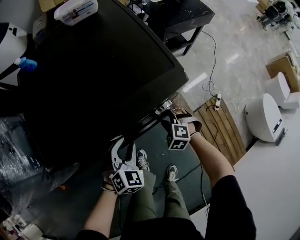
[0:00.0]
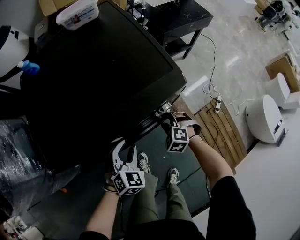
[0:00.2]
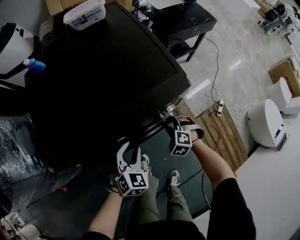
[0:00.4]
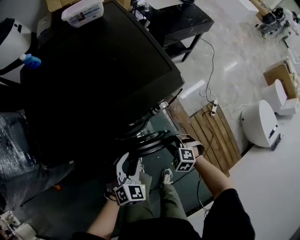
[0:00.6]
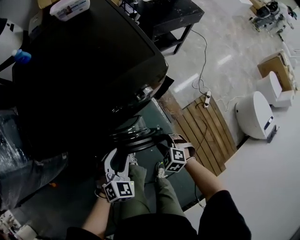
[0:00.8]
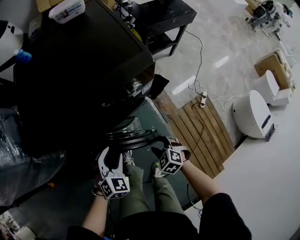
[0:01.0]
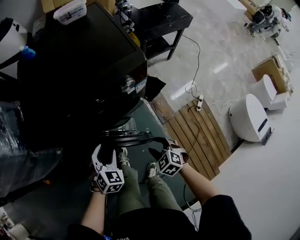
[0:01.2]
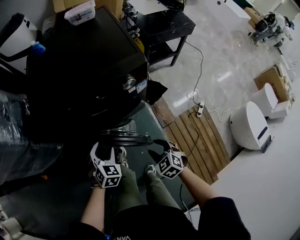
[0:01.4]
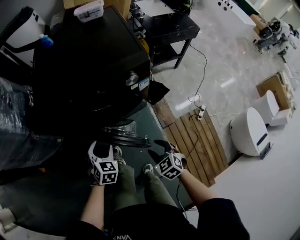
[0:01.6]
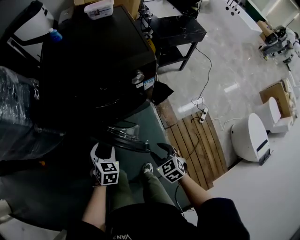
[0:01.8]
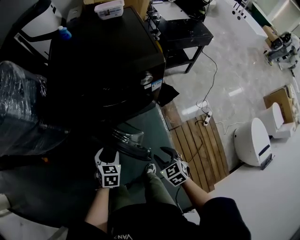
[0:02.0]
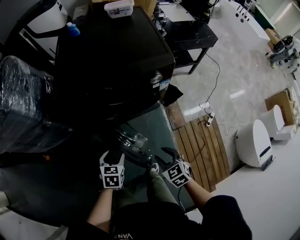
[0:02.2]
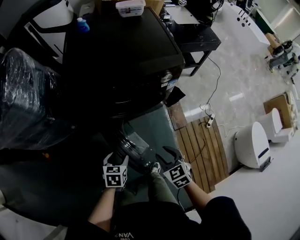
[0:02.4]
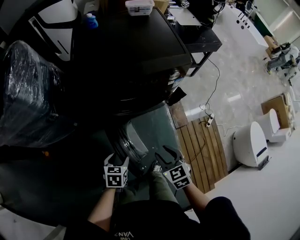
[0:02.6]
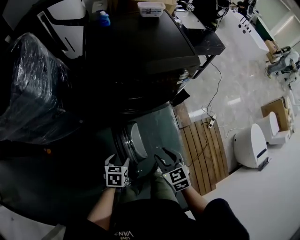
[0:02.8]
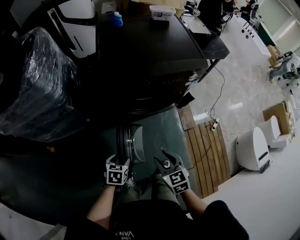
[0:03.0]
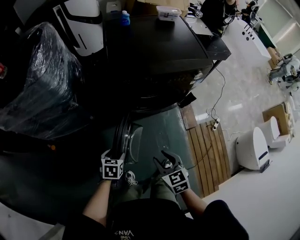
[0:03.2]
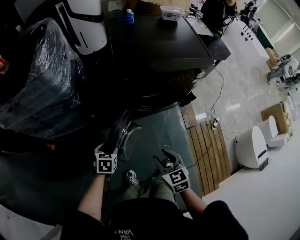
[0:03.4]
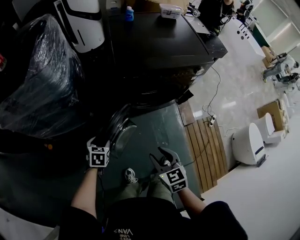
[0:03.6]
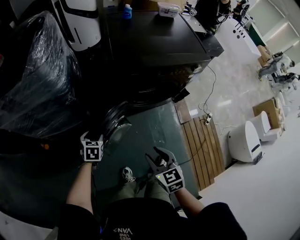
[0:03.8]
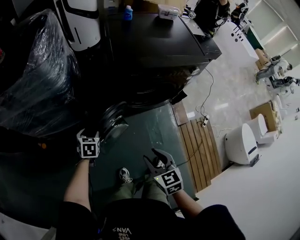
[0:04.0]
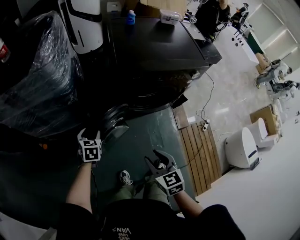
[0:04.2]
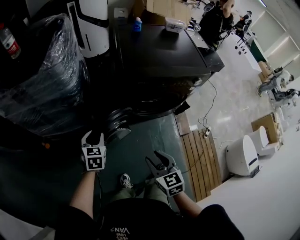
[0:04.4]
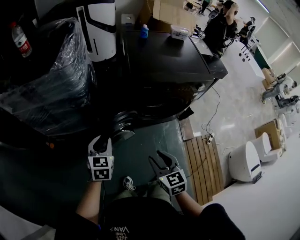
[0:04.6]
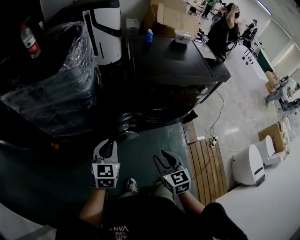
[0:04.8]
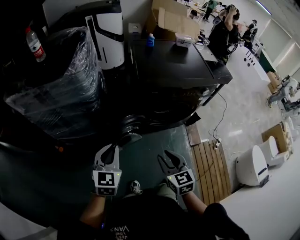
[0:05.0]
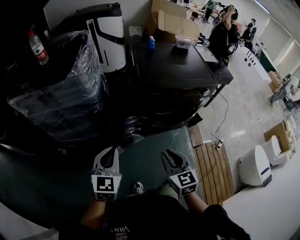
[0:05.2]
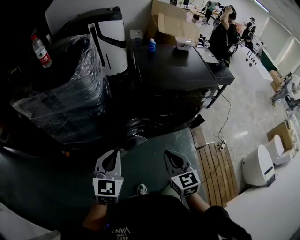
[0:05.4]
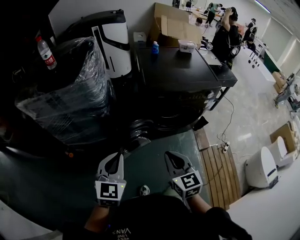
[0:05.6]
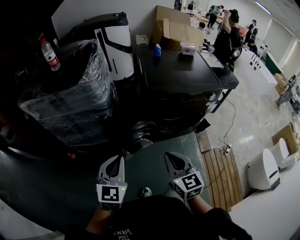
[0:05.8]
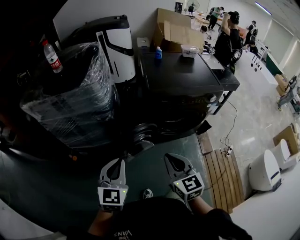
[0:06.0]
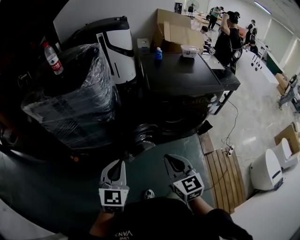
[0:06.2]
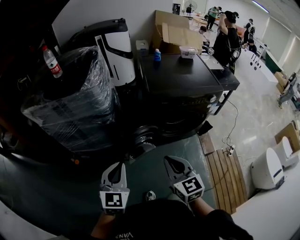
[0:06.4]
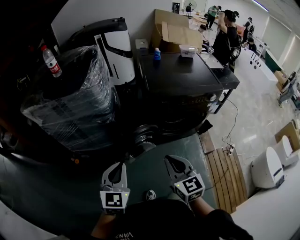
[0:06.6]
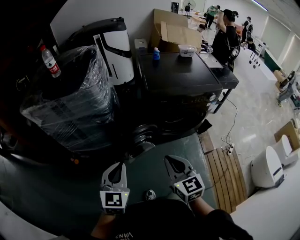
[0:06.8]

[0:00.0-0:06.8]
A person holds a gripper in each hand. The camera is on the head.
0:00.0 to 0:01.4: The right gripper travels backward by about 25 cm, and swivels some 30 degrees. The left gripper goes approximately 15 cm backward.
0:01.4 to 0:02.8: The left gripper shifts roughly 25 cm to the left and backward, and changes its angle by about 40 degrees, while the right gripper goes about 25 cm to the left and upward.
0:02.8 to 0:04.0: The grippers both shift to the left by roughly 20 cm.
0:04.0 to 0:05.4: The right gripper is displaced upward by some 15 cm, and closes its fingers, while the left gripper goes about 35 cm upward and backward, angles its fingers upward, by about 30 degrees, and closes up.
0:05.4 to 0:06.8: There are only small adjustments of the grippers.

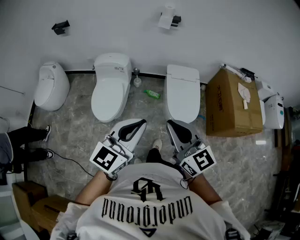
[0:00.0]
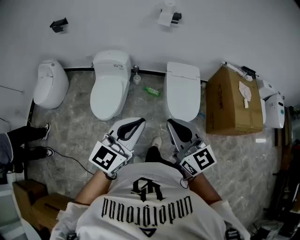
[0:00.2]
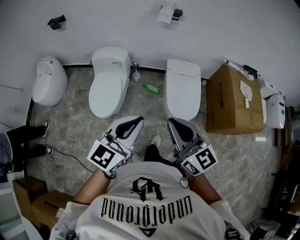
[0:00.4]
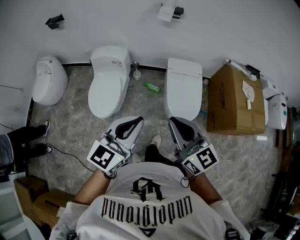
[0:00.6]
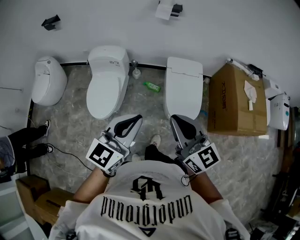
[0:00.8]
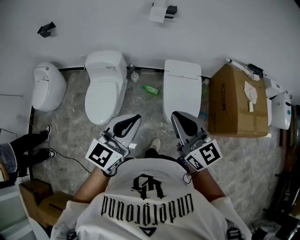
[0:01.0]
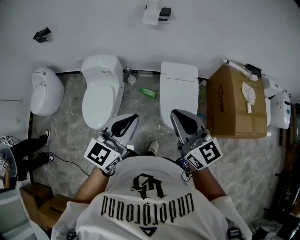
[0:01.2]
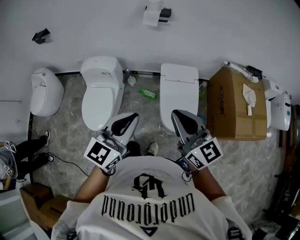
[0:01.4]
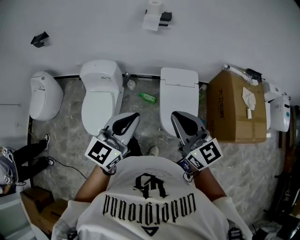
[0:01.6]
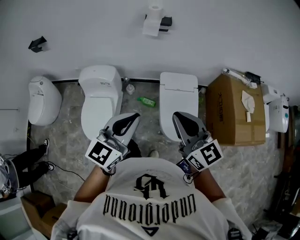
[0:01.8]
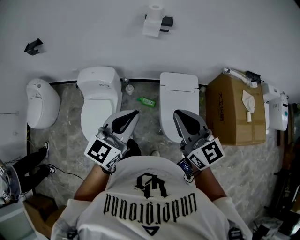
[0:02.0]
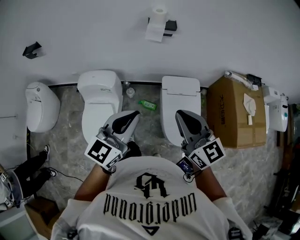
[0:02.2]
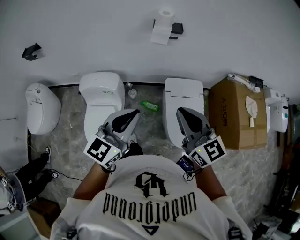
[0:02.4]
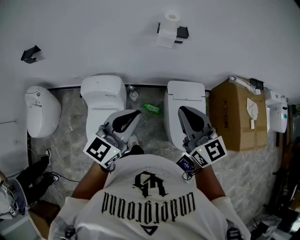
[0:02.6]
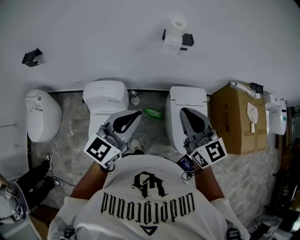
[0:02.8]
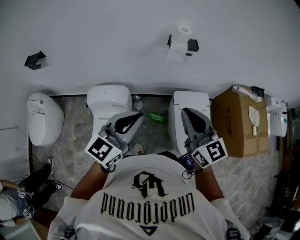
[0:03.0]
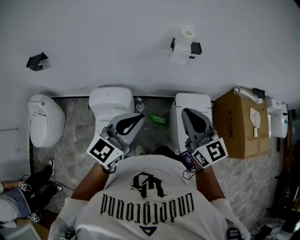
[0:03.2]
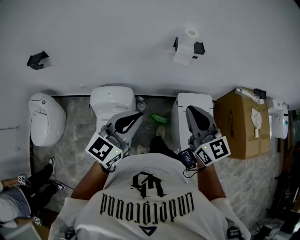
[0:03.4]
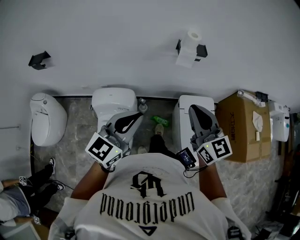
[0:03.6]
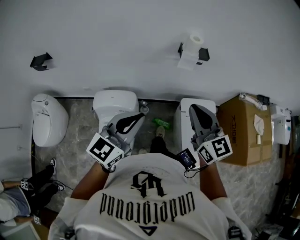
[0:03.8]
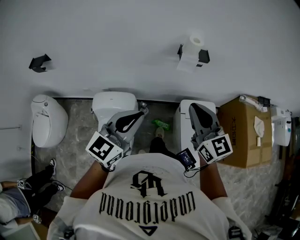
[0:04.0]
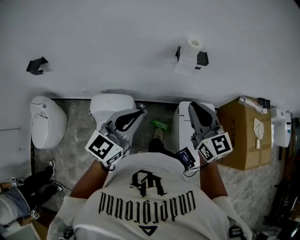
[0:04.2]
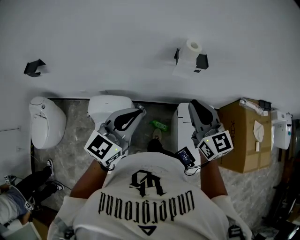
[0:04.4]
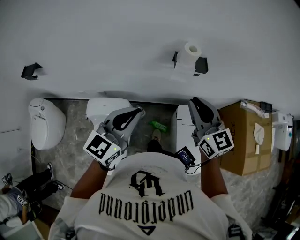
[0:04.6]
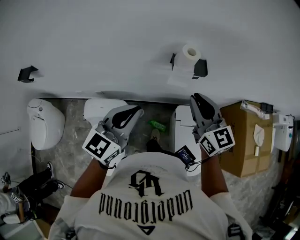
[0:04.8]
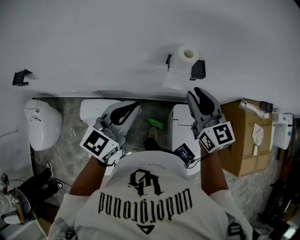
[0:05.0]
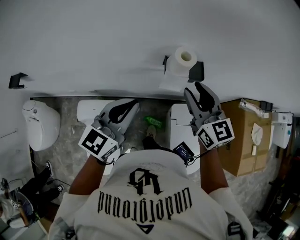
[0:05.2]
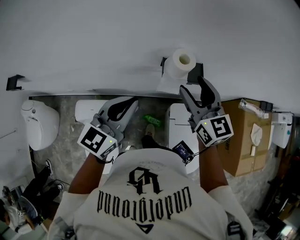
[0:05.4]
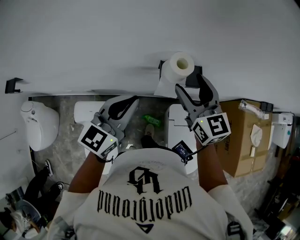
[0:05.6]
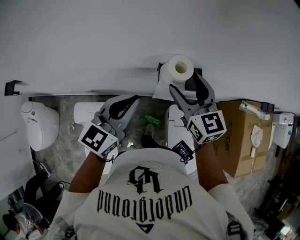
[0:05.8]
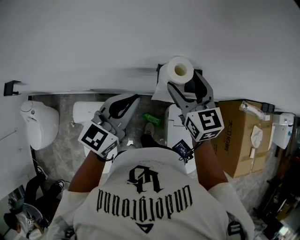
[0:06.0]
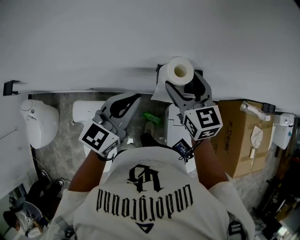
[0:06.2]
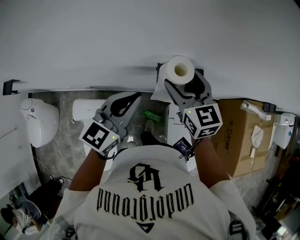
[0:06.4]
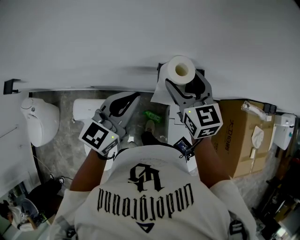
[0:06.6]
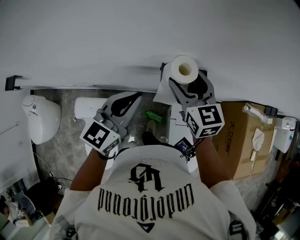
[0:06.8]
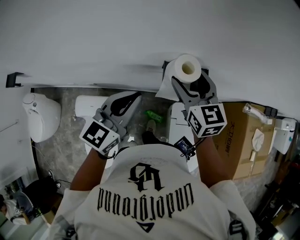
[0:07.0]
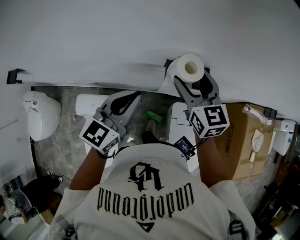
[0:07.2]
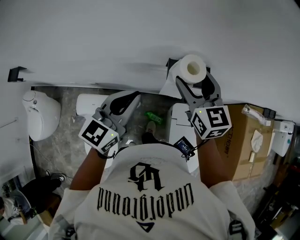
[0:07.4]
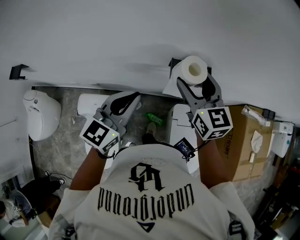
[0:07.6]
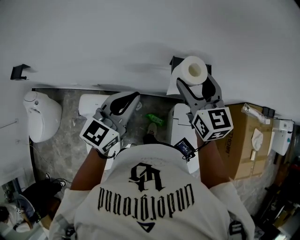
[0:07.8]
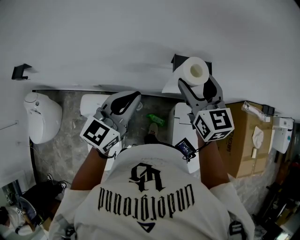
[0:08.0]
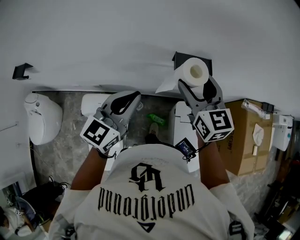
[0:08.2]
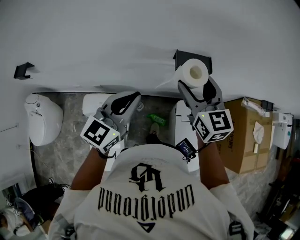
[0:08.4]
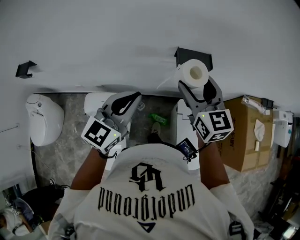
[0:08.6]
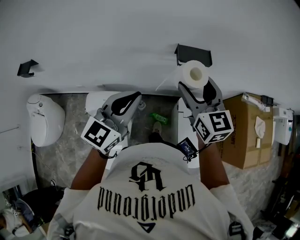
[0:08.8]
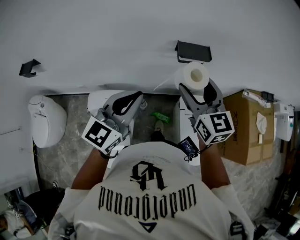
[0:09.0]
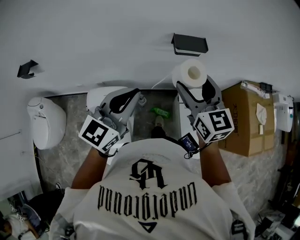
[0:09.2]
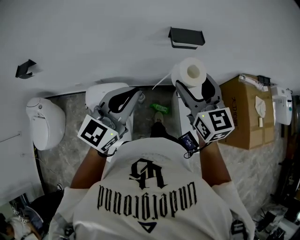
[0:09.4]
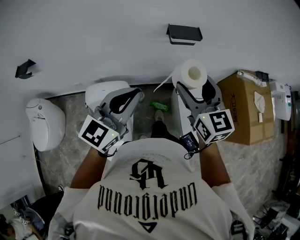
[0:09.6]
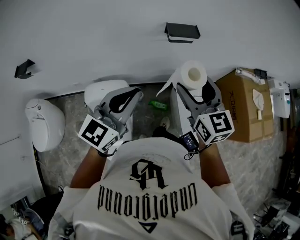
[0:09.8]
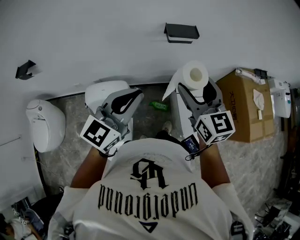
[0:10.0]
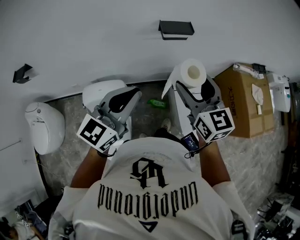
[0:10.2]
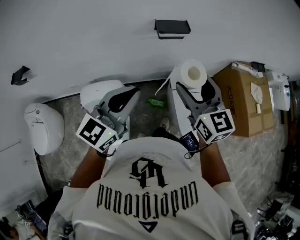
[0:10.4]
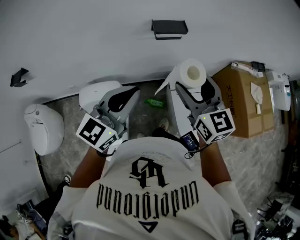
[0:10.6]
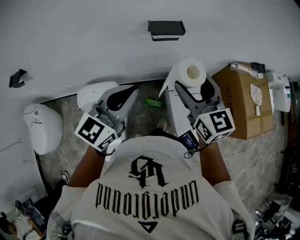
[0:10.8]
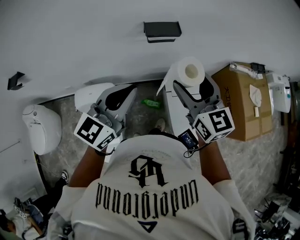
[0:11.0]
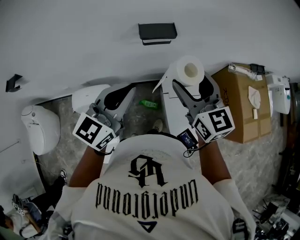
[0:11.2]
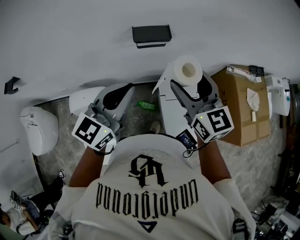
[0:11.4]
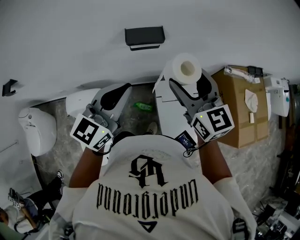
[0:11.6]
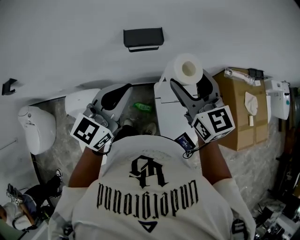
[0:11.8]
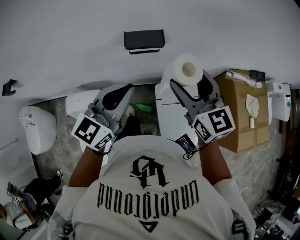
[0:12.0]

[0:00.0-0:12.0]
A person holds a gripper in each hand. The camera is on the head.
0:00.0 to 0:01.6: The left gripper shifts roughly 25 cm forward. The right gripper shifts some 30 cm forward and to the right.
0:01.6 to 0:03.0: Both grippers travel together forward and to the left, some 30 cm.
0:03.0 to 0:04.4: The grippers both shift forward by approximately 15 cm.
0:04.4 to 0:06.0: The grippers both shift forward by roughly 25 cm. The right gripper opens.
0:06.0 to 0:07.6: The left gripper changes place by approximately 5 cm. Meanwhile the right gripper moves about 5 cm.
0:07.6 to 0:09.0: Both grippers move backward, roughly 15 cm.
0:09.0 to 0:10.4: The two grippers go approximately 10 cm backward and to the right.
0:10.4 to 0:12.0: Both grippers travel together forward and to the right, about 20 cm.

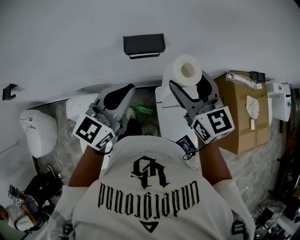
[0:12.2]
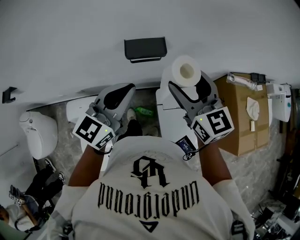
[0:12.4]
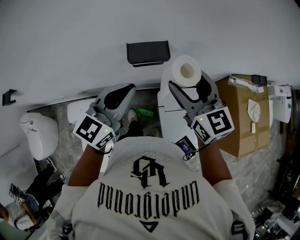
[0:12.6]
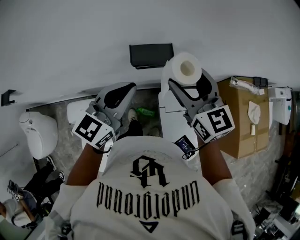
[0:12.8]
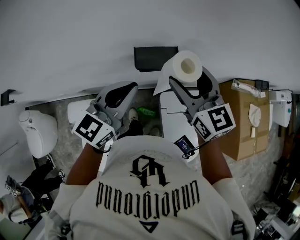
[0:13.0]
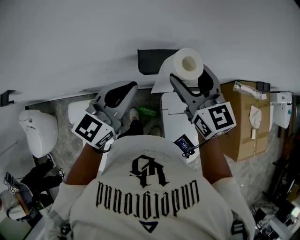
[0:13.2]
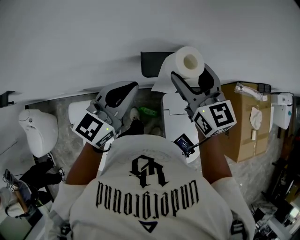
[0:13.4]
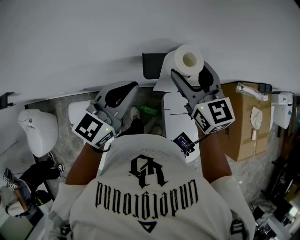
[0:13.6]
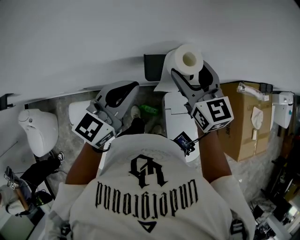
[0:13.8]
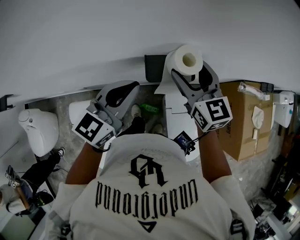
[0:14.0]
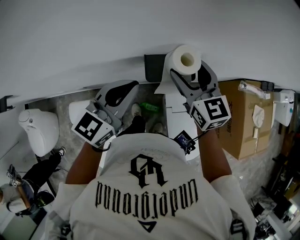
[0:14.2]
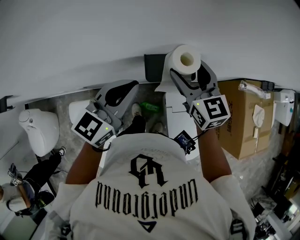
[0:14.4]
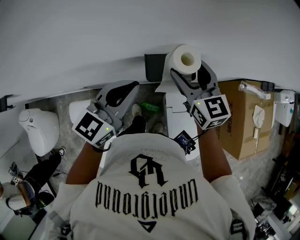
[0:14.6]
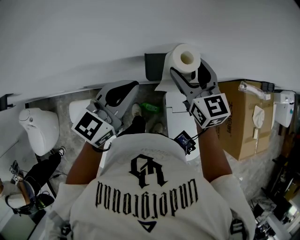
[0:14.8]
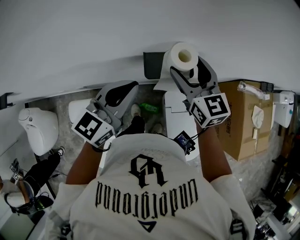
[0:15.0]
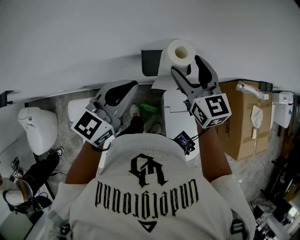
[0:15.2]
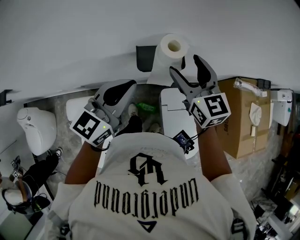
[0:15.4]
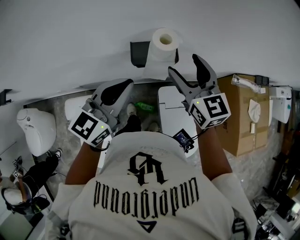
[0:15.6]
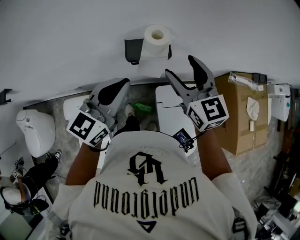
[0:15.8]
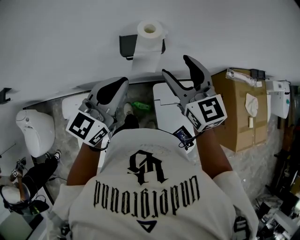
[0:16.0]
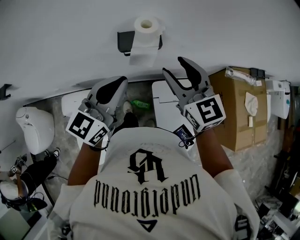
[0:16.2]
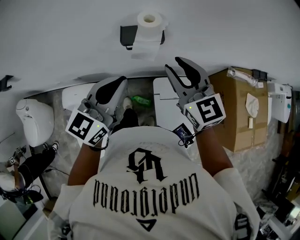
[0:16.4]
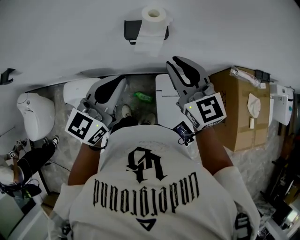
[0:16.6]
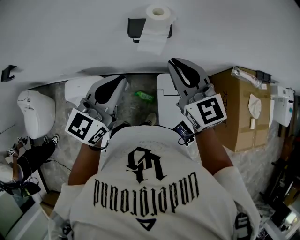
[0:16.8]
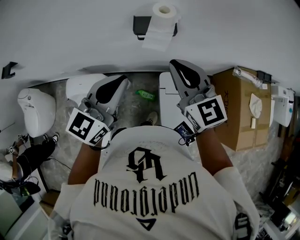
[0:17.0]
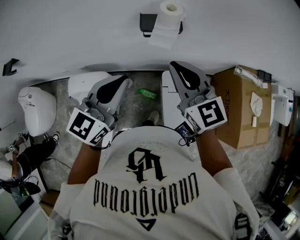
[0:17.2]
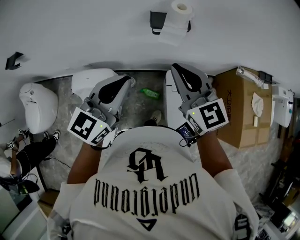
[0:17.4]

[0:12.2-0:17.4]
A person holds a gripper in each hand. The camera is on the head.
0:12.2 to 0:14.0: Both grippers move forward and to the left, roughly 20 cm.
0:14.0 to 0:15.6: Both grippers move backward, roughly 5 cm.
0:15.6 to 0:17.4: The grippers both shift backward by about 20 cm. The right gripper closes up.
